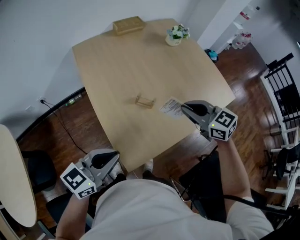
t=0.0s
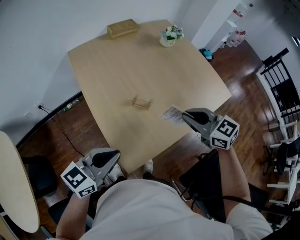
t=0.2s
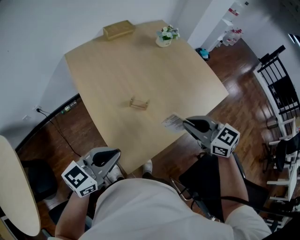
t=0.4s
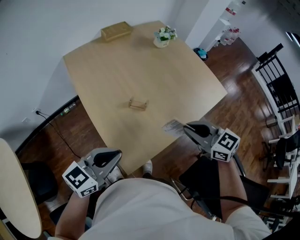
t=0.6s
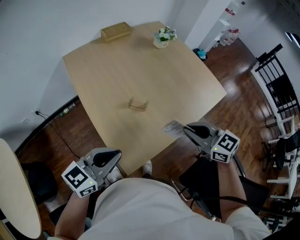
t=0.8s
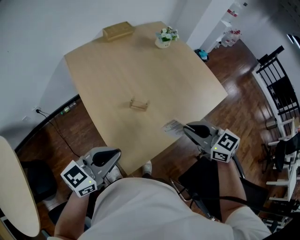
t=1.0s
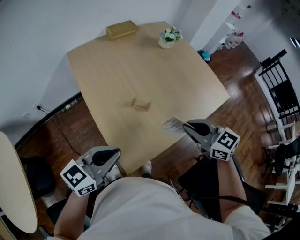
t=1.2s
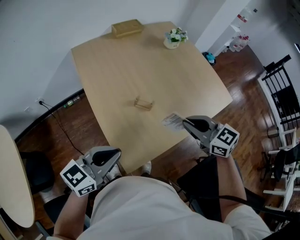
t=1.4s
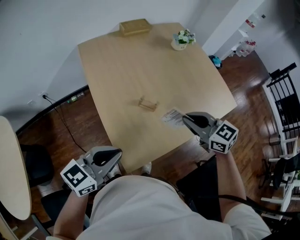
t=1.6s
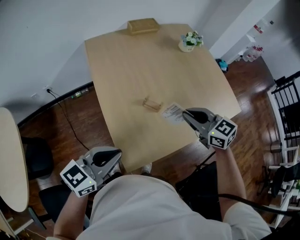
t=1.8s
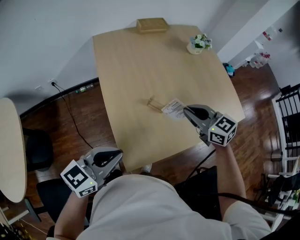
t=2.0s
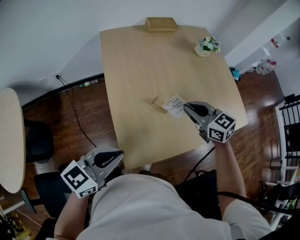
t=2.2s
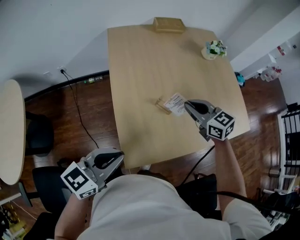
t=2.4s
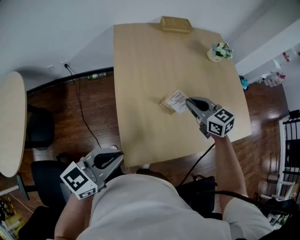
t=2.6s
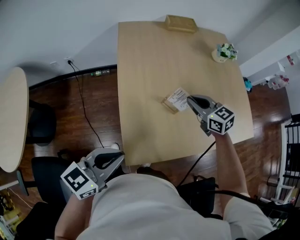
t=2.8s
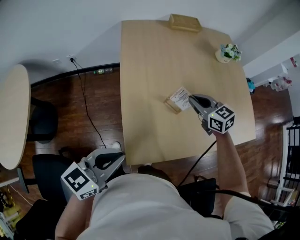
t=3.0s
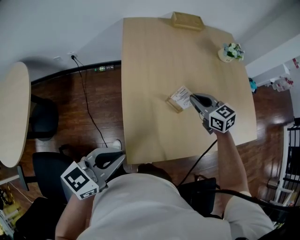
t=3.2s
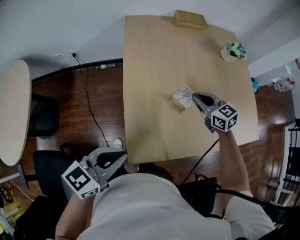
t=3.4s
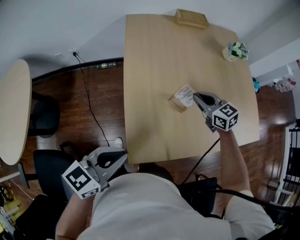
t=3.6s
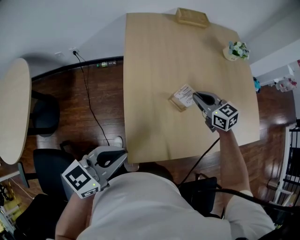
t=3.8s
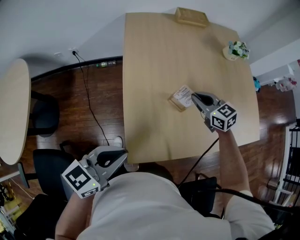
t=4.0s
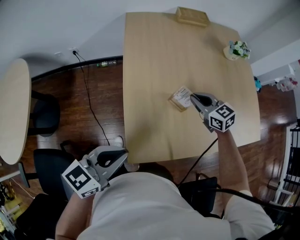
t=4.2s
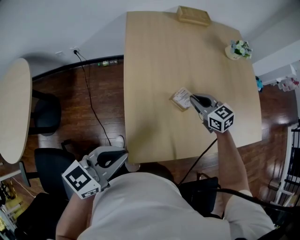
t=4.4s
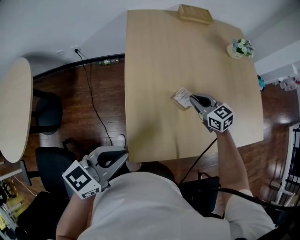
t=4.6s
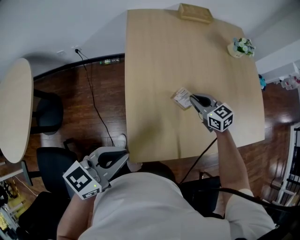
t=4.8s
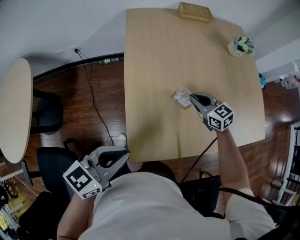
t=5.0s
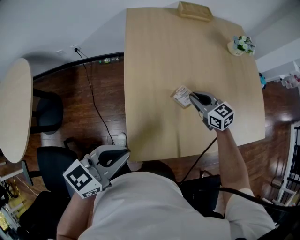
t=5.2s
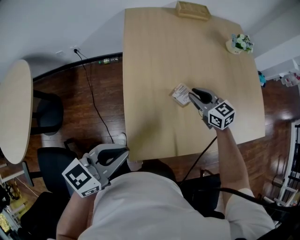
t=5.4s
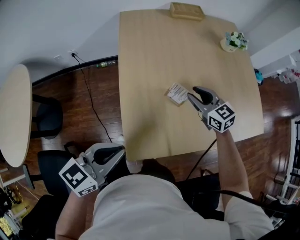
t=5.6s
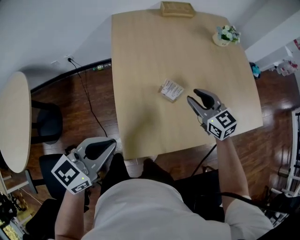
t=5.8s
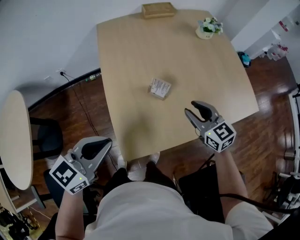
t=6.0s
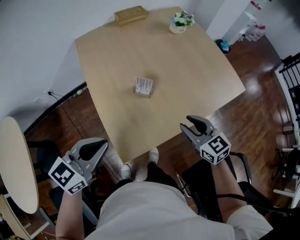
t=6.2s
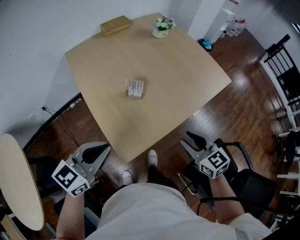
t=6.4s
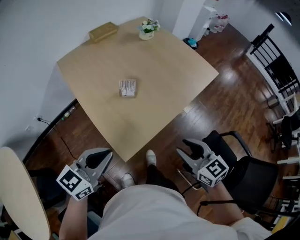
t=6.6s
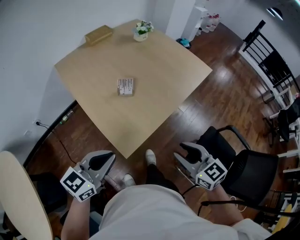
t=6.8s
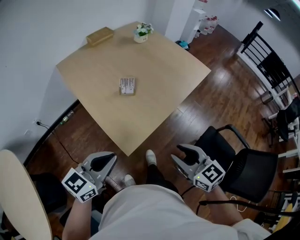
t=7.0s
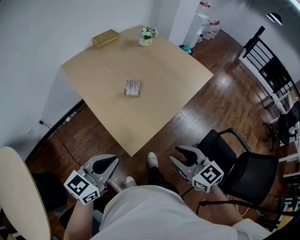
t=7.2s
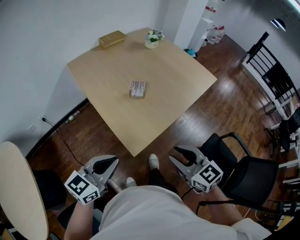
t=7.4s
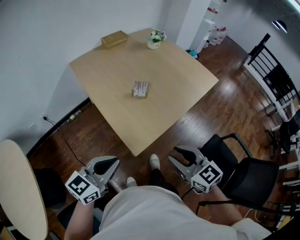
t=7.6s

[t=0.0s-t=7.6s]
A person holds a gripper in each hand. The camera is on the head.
t=0.0s to t=1.6s: The right gripper reaches approximately 10 cm backward, then returns.
t=1.6s to t=3.0s: The right gripper is displaced forward and downward by approximately 15 cm.
t=3.0s to t=4.6s: The right gripper is displaced downward by roughly 5 cm.
t=4.6s to t=6.0s: The right gripper travels backward, upward and to the right by approximately 15 cm, and opens.
t=6.0s to t=7.6s: The left gripper shifts about 15 cm backward, and swivels roughly 20 degrees. The right gripper heads backward, covering about 35 cm.

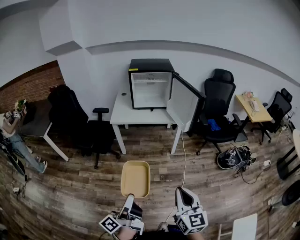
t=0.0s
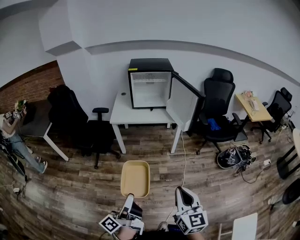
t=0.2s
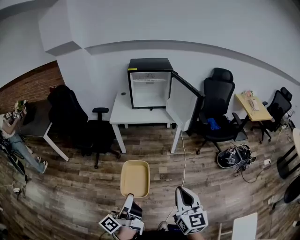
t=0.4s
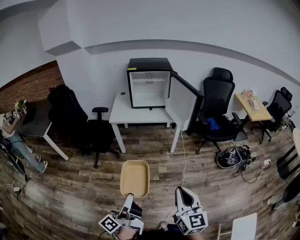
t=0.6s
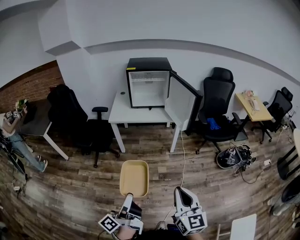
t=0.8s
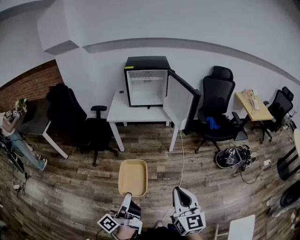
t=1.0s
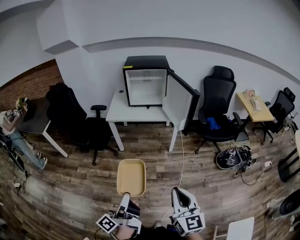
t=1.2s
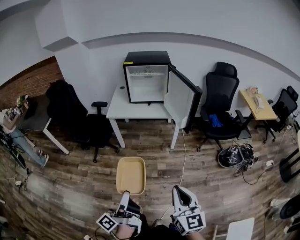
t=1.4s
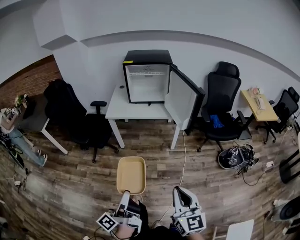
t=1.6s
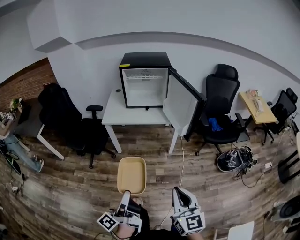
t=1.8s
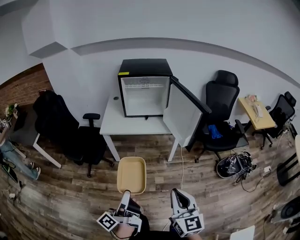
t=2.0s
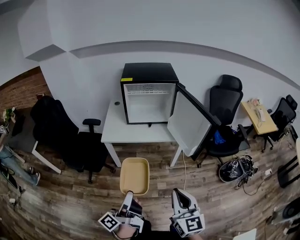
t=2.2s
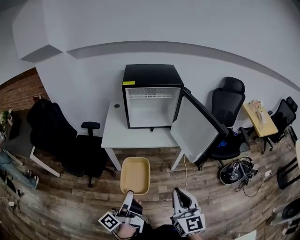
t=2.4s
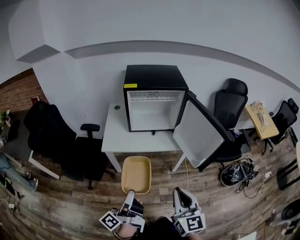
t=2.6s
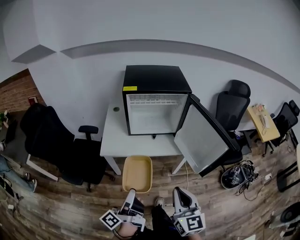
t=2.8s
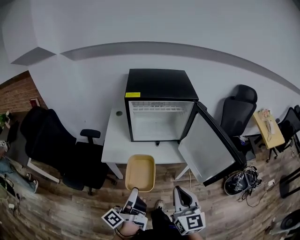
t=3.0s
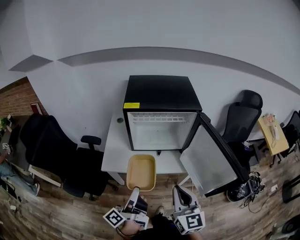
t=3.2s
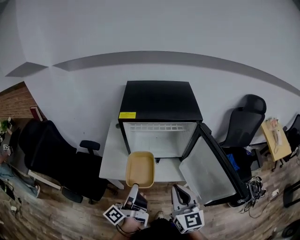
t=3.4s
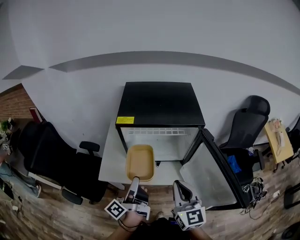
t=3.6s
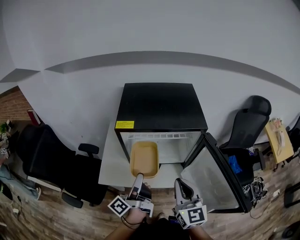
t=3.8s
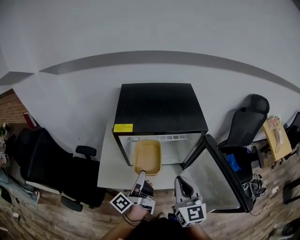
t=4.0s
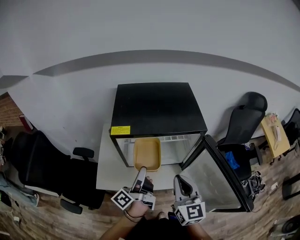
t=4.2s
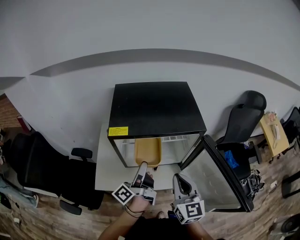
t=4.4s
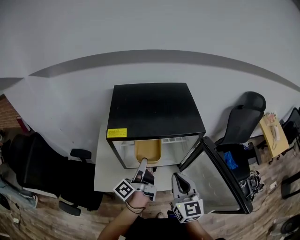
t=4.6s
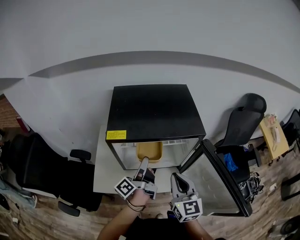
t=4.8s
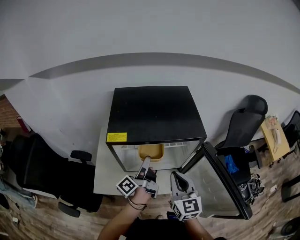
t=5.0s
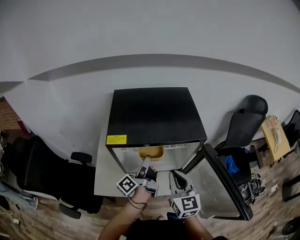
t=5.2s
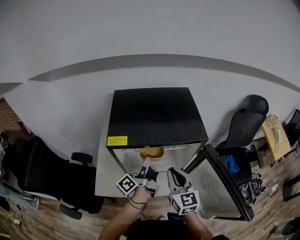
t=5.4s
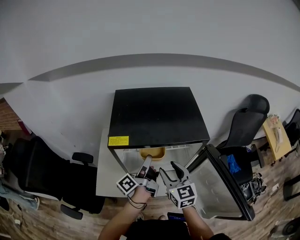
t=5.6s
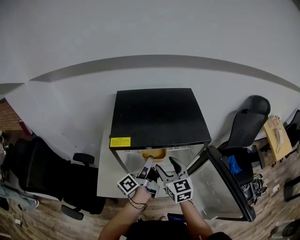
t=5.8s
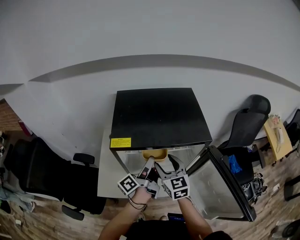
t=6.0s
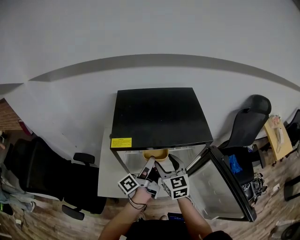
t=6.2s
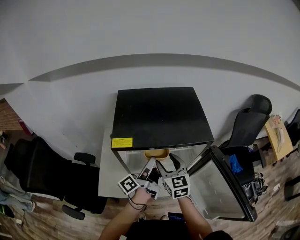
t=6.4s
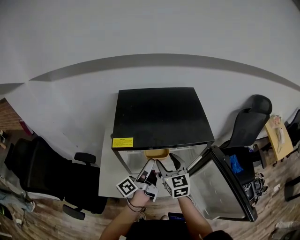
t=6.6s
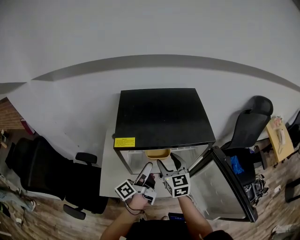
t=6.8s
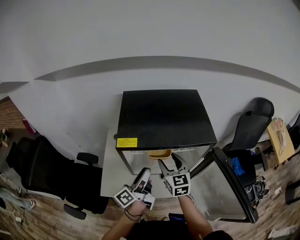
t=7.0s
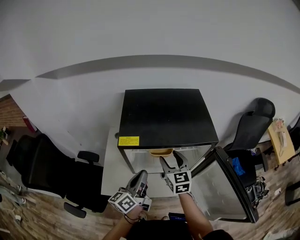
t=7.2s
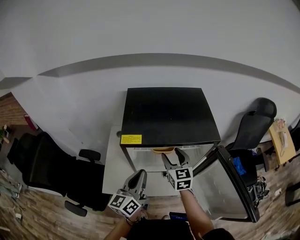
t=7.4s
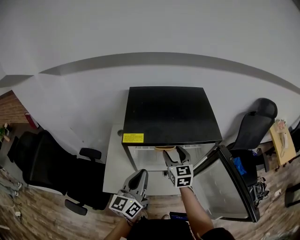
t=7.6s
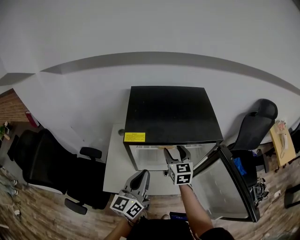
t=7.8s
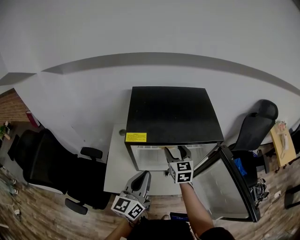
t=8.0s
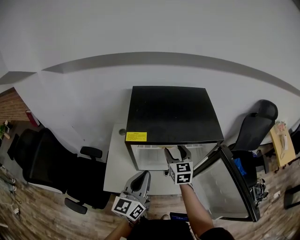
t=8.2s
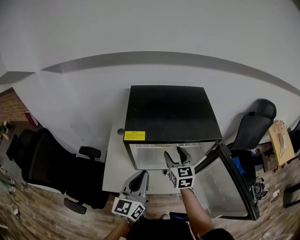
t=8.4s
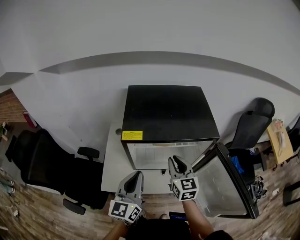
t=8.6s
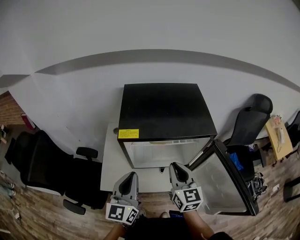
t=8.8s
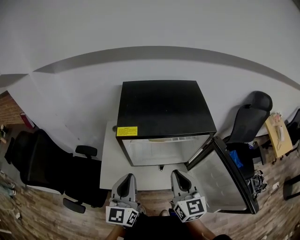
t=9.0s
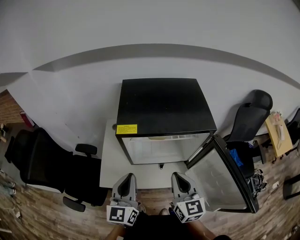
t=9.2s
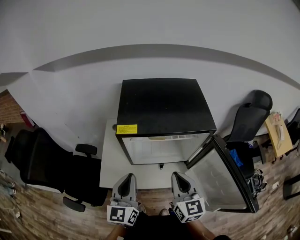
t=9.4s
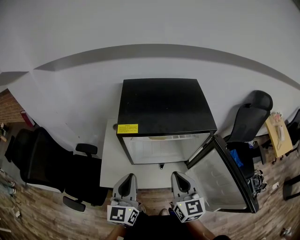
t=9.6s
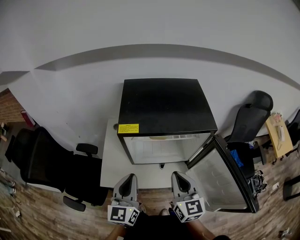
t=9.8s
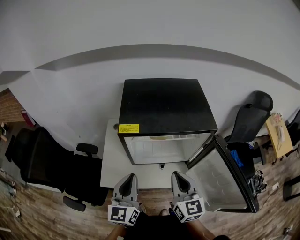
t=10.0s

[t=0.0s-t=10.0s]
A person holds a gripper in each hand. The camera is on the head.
t=0.0s to t=1.4s: The two grippers go some 5 cm to the right.
t=1.4s to t=2.8s: Both grippers are carried forward, about 50 cm.
t=2.8s to t=4.2s: Both grippers travel together forward, some 40 cm.
t=4.2s to t=5.8s: The left gripper is displaced forward by approximately 10 cm. The right gripper goes roughly 15 cm forward and downward, and opens up.
t=5.8s to t=7.2s: The left gripper shifts approximately 10 cm backward and to the left, changes its angle by approximately 30 degrees, and closes up.
t=7.2s to t=8.6s: The left gripper shifts roughly 5 cm upward, and changes its angle by roughly 40 degrees. The right gripper changes place by roughly 5 cm, and closes up.
t=8.6s to t=10.0s: The right gripper shifts approximately 10 cm backward.

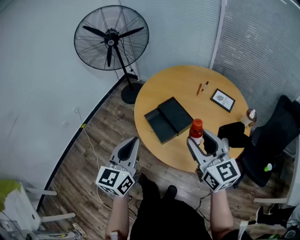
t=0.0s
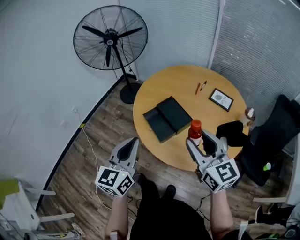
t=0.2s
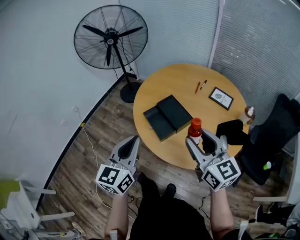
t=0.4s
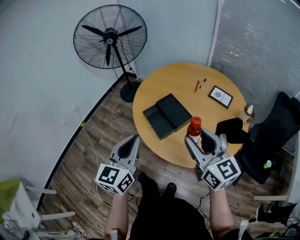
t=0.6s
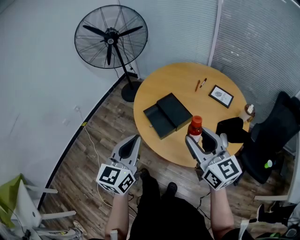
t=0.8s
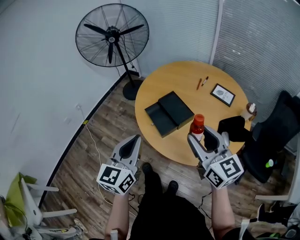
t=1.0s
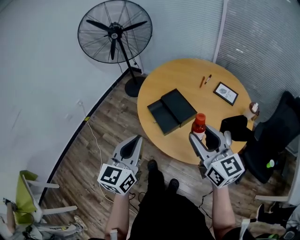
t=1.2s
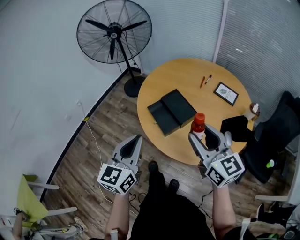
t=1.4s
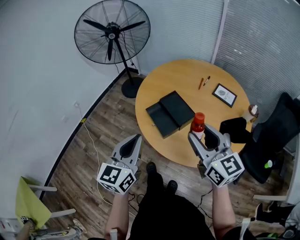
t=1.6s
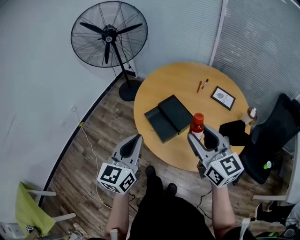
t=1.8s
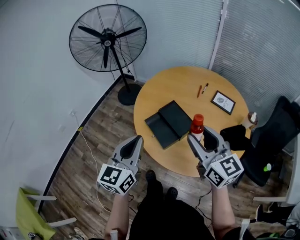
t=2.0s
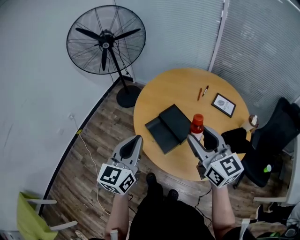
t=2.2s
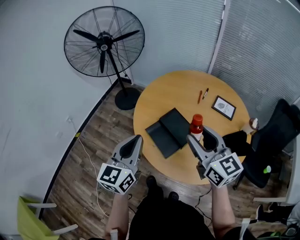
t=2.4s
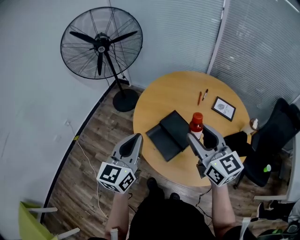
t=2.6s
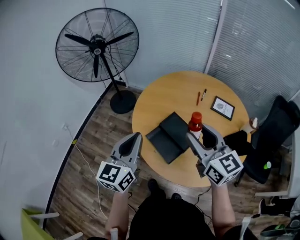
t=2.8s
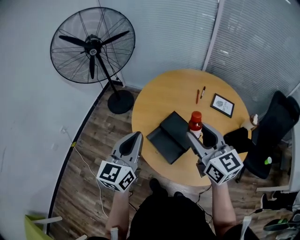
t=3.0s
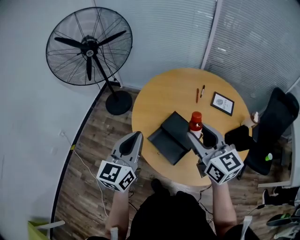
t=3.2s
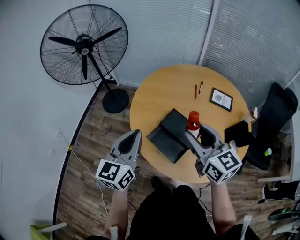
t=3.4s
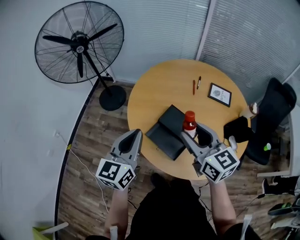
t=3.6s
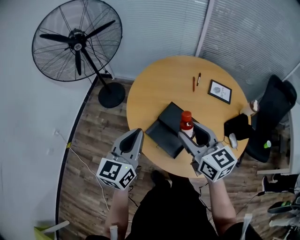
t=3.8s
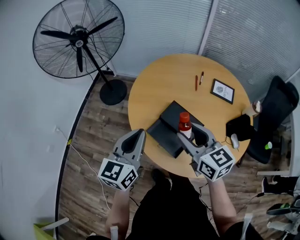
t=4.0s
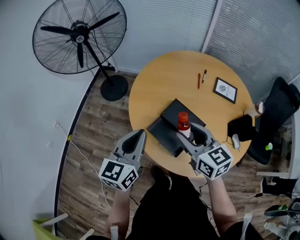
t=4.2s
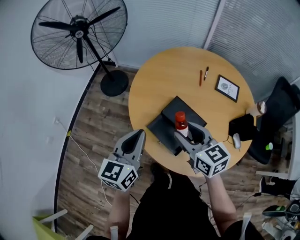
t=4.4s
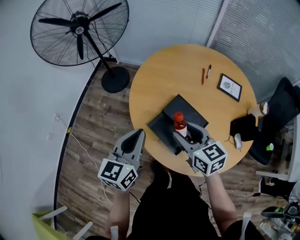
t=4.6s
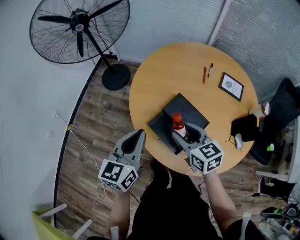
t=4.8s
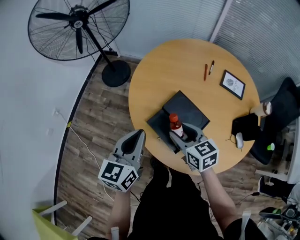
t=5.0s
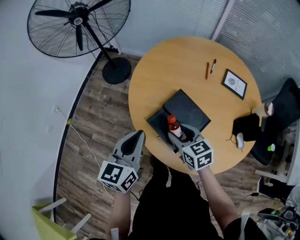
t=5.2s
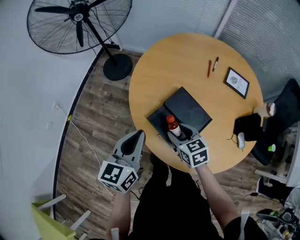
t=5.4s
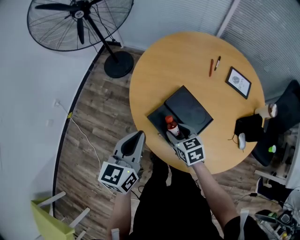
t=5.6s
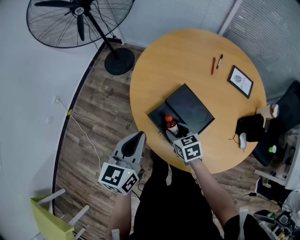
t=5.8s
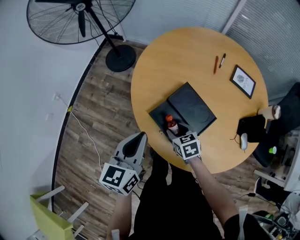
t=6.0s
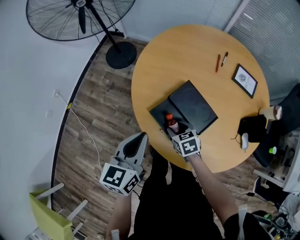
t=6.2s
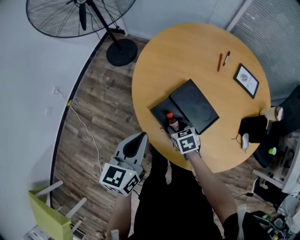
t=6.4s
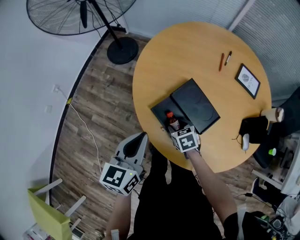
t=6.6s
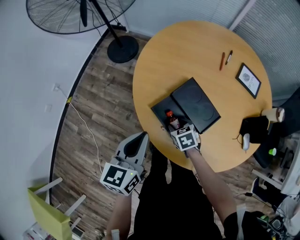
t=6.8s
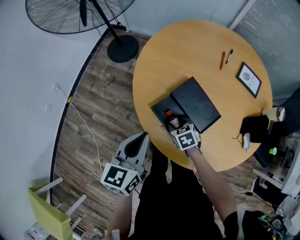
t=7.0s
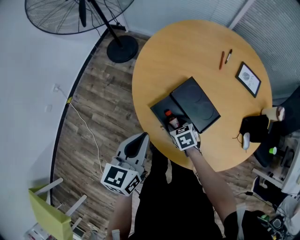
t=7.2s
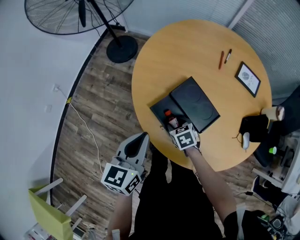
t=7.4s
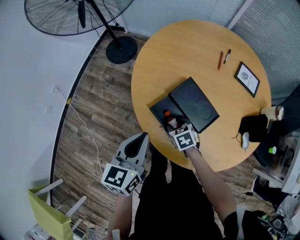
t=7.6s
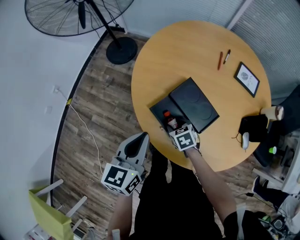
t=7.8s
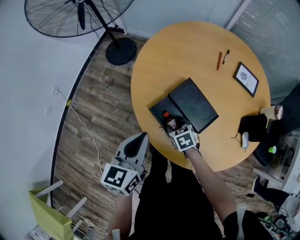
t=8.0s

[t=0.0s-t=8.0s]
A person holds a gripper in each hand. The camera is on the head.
t=0.0s to t=1.6s: The grippers stay close to where they were, moving slightly.
t=1.6s to t=3.2s: The left gripper is displaced forward by approximately 20 cm; the right gripper is displaced forward and to the left by approximately 20 cm.
t=3.2s to t=4.8s: The left gripper heads downward, covering roughly 10 cm. Meanwhile the right gripper travels downward by some 15 cm, and turns by roughly 20 degrees.
t=4.8s to t=6.4s: The right gripper shifts roughly 25 cm downward, and swivels approximately 30 degrees, while the left gripper heads downward, covering approximately 5 cm.
t=6.4s to t=8.0s: The grippers move only a little.
